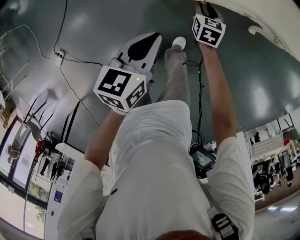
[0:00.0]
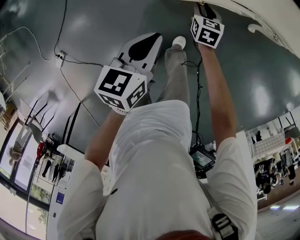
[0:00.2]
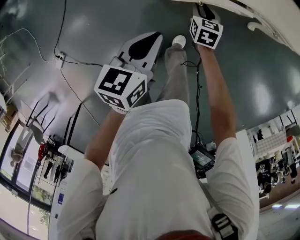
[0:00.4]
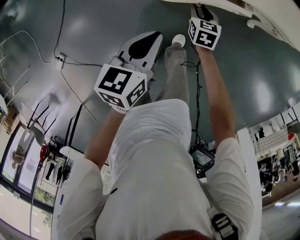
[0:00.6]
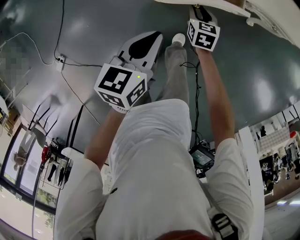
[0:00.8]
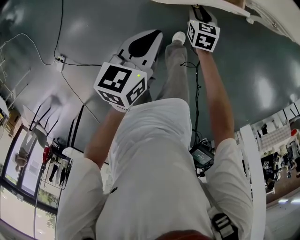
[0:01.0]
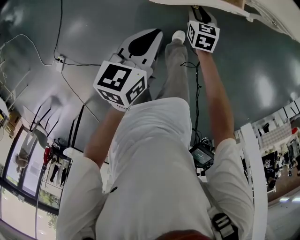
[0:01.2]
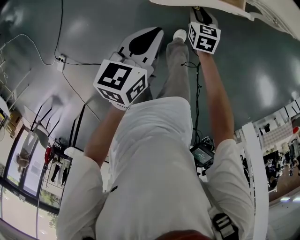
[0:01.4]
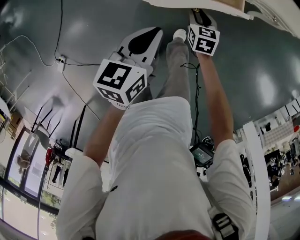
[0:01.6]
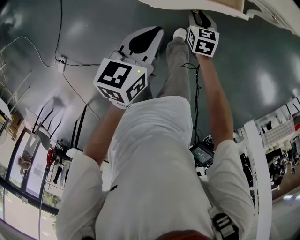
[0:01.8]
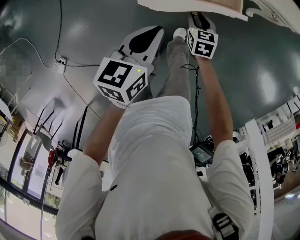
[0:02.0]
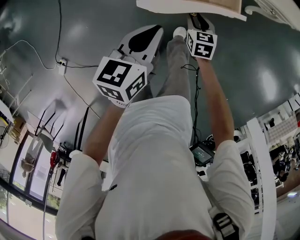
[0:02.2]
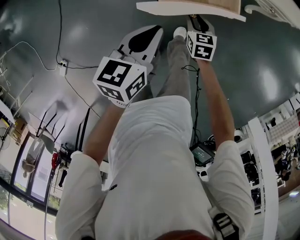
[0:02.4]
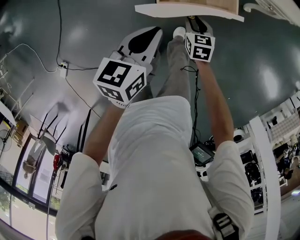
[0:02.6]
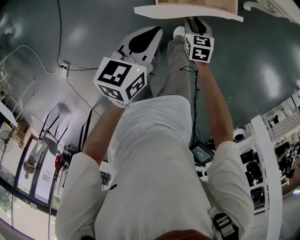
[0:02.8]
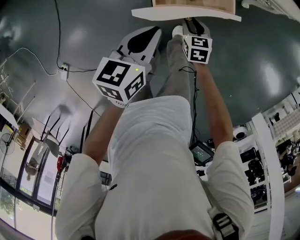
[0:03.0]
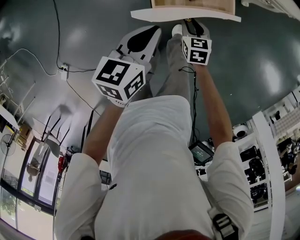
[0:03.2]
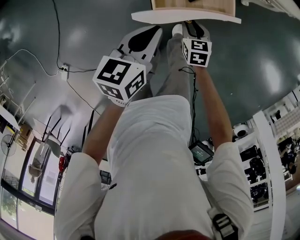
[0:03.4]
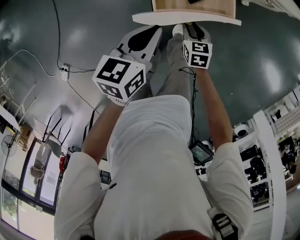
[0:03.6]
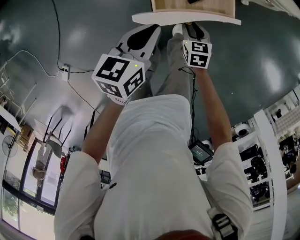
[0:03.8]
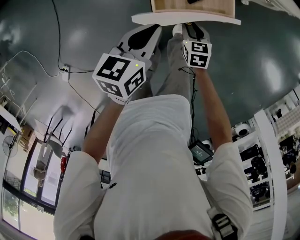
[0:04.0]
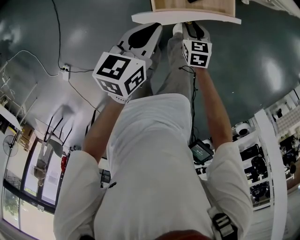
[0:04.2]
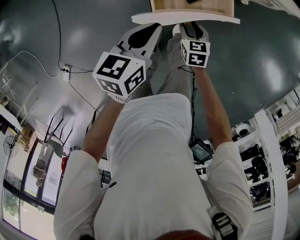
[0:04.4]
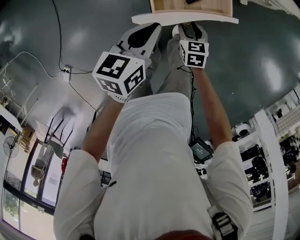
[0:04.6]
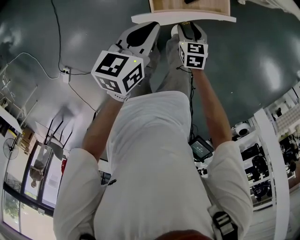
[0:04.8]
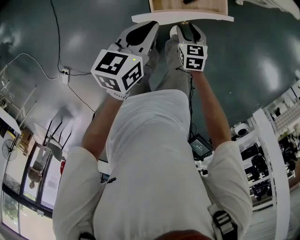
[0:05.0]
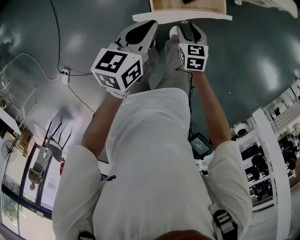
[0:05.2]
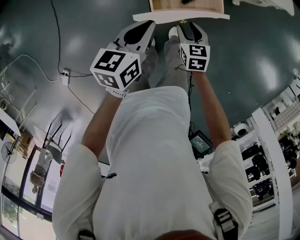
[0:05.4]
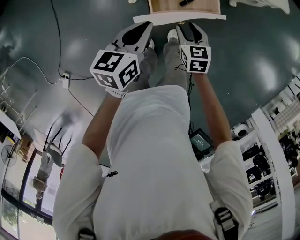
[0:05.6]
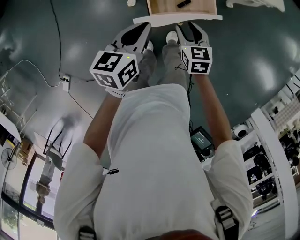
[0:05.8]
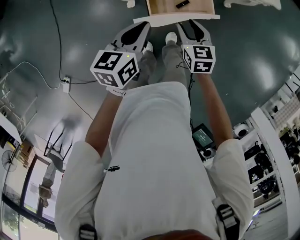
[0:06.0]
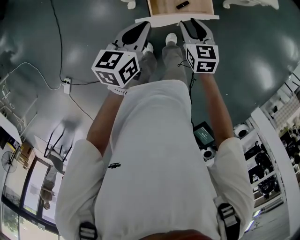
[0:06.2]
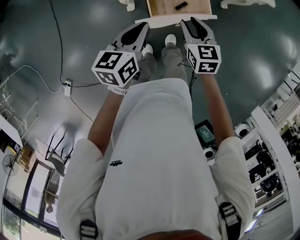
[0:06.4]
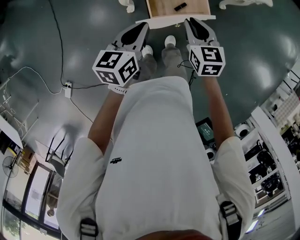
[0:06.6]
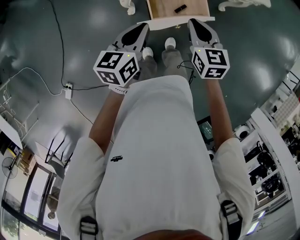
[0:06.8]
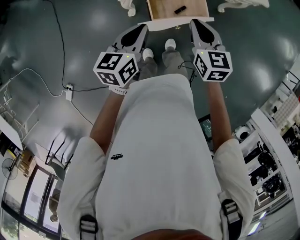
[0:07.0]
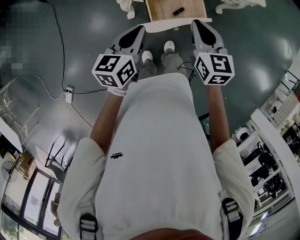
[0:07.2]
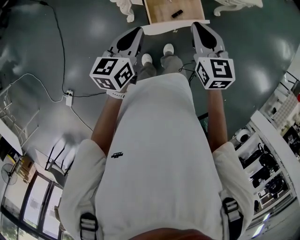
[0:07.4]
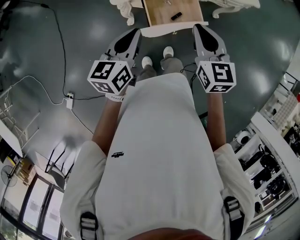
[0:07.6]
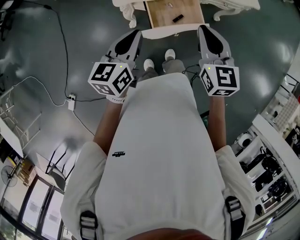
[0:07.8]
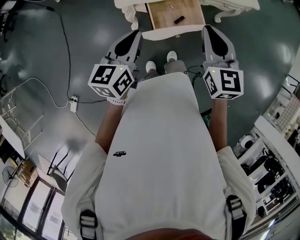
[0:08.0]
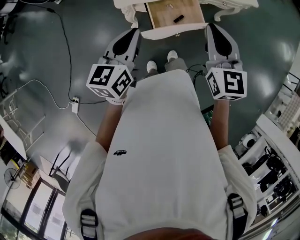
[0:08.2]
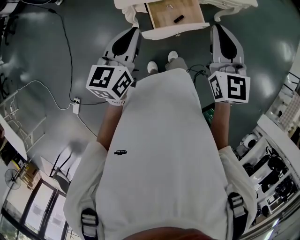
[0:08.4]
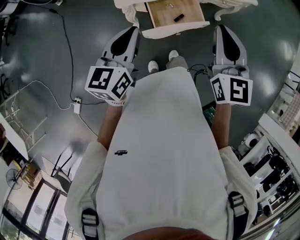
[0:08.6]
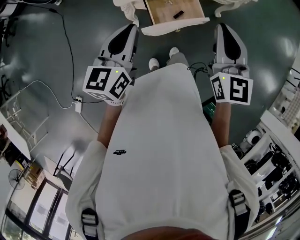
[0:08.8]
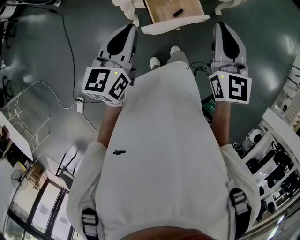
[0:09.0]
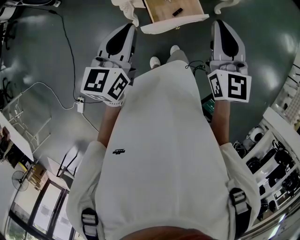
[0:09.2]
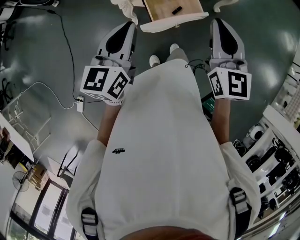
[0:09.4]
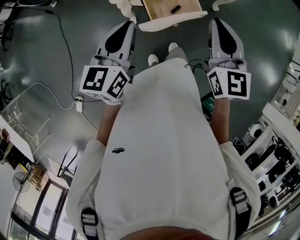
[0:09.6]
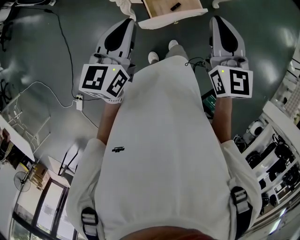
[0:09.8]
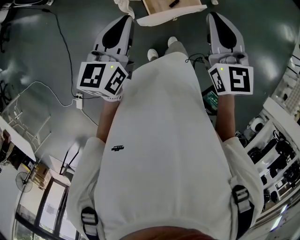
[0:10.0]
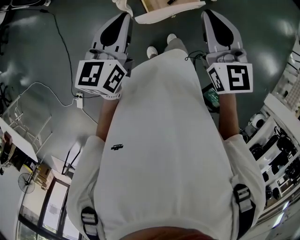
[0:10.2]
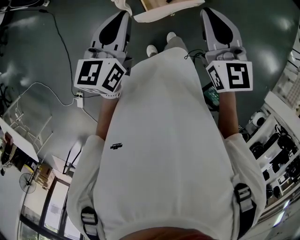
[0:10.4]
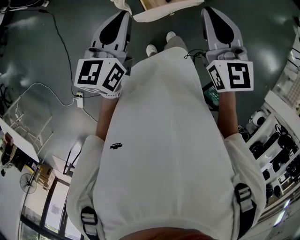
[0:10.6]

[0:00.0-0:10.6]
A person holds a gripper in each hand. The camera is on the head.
0:00.0 to 0:01.6: The right gripper heads backward, covering roughly 10 cm.
0:01.6 to 0:03.0: The right gripper travels backward by approximately 5 cm.
0:03.0 to 0:04.6: The grippers make only small movements.
0:04.6 to 0:06.0: The left gripper is displaced upward by some 10 cm; the right gripper is displaced upward by roughly 20 cm.
0:06.0 to 0:07.6: The left gripper goes roughly 10 cm upward. The right gripper shifts roughly 20 cm upward, and closes up.
0:07.6 to 0:09.0: Both grippers move upward, approximately 10 cm.
0:09.0 to 0:10.6: The grippers move only a little.

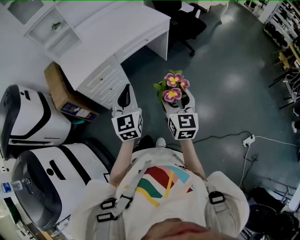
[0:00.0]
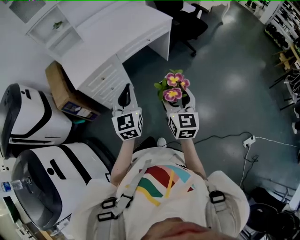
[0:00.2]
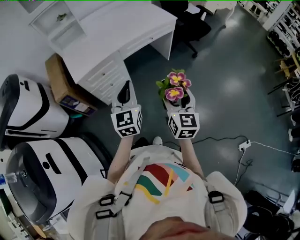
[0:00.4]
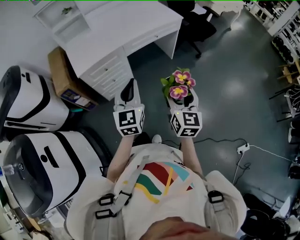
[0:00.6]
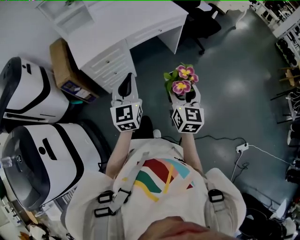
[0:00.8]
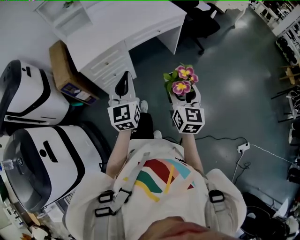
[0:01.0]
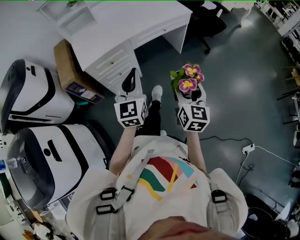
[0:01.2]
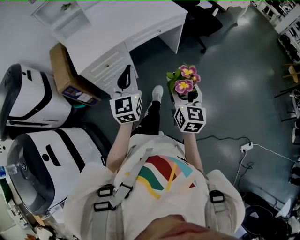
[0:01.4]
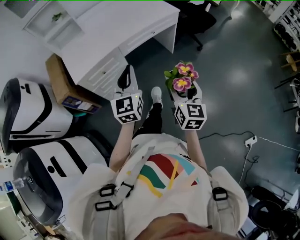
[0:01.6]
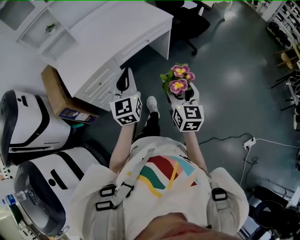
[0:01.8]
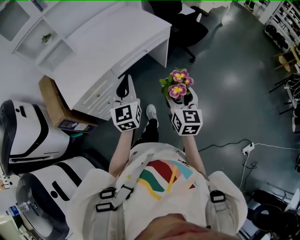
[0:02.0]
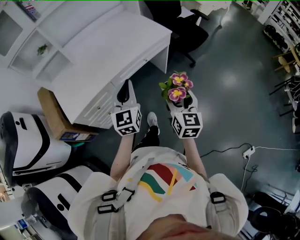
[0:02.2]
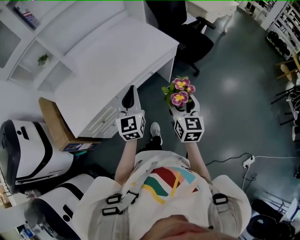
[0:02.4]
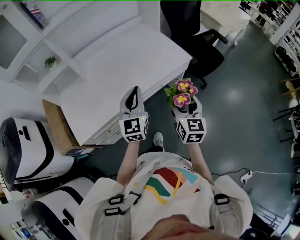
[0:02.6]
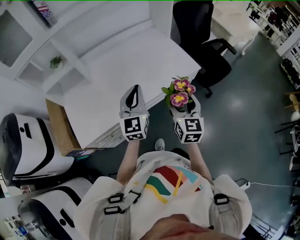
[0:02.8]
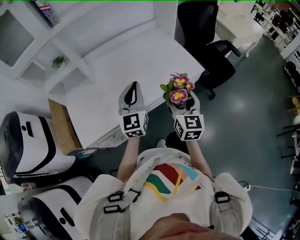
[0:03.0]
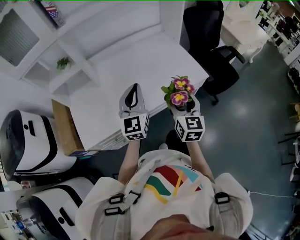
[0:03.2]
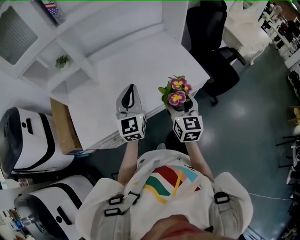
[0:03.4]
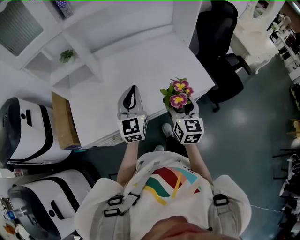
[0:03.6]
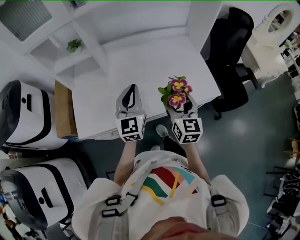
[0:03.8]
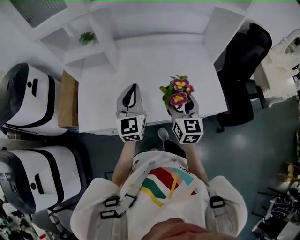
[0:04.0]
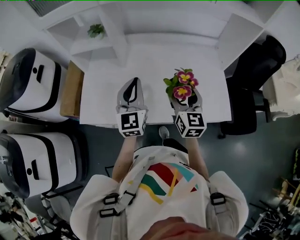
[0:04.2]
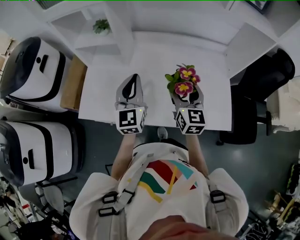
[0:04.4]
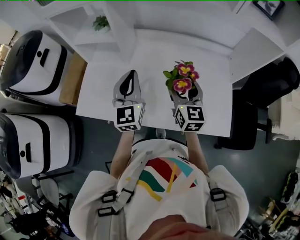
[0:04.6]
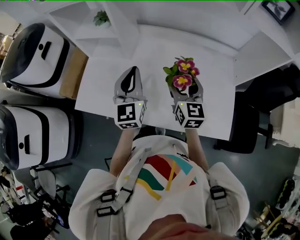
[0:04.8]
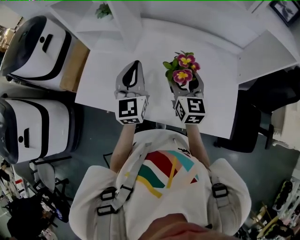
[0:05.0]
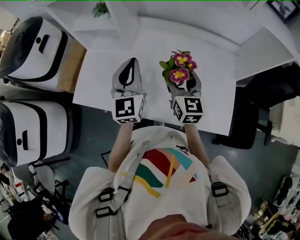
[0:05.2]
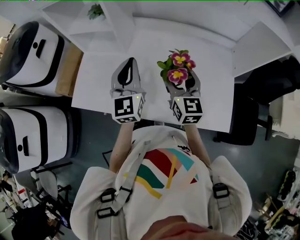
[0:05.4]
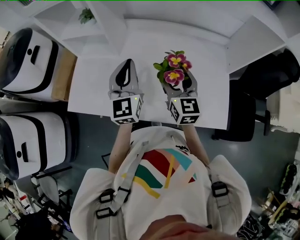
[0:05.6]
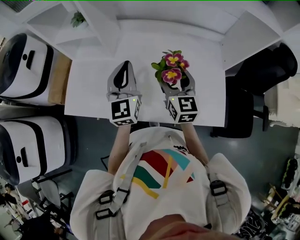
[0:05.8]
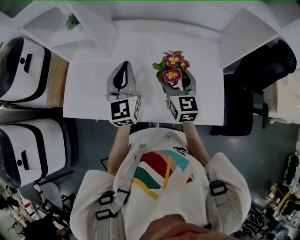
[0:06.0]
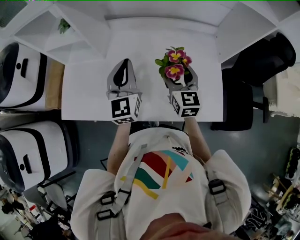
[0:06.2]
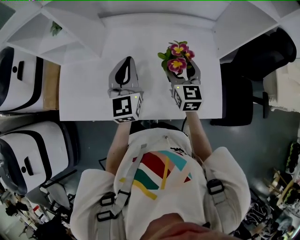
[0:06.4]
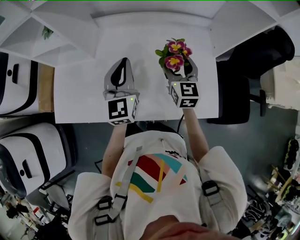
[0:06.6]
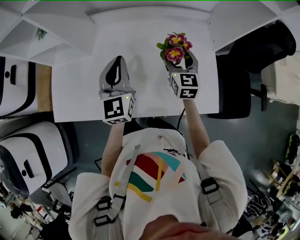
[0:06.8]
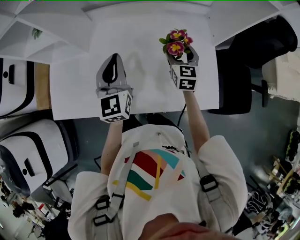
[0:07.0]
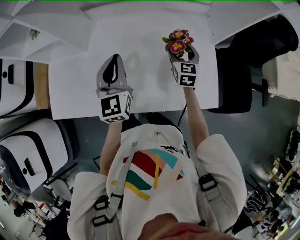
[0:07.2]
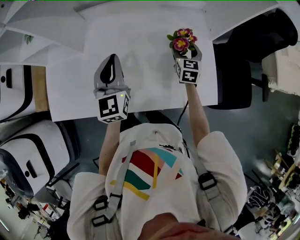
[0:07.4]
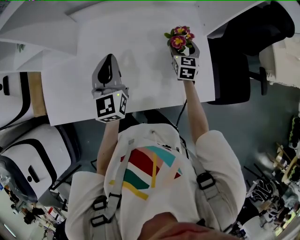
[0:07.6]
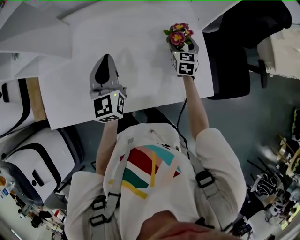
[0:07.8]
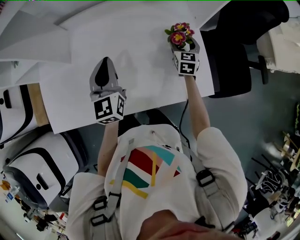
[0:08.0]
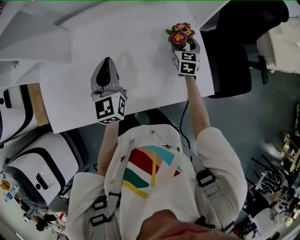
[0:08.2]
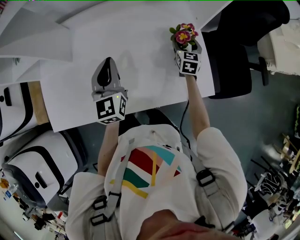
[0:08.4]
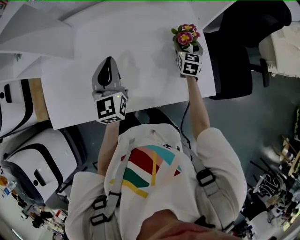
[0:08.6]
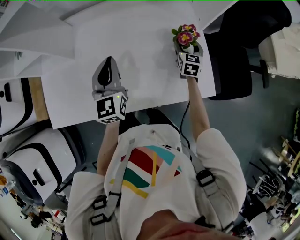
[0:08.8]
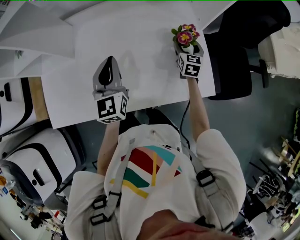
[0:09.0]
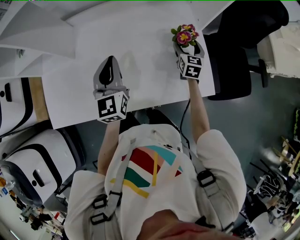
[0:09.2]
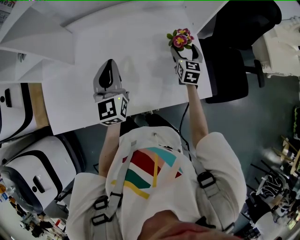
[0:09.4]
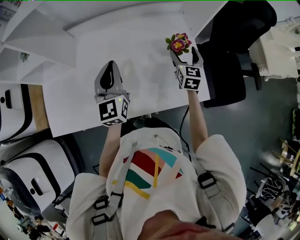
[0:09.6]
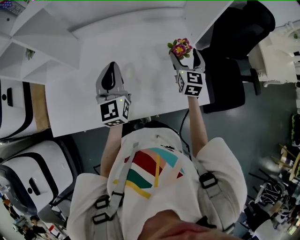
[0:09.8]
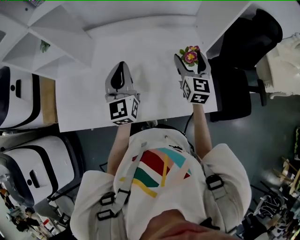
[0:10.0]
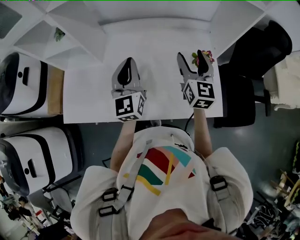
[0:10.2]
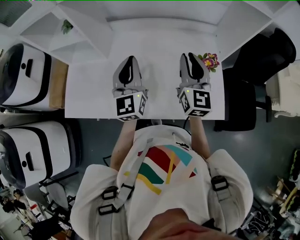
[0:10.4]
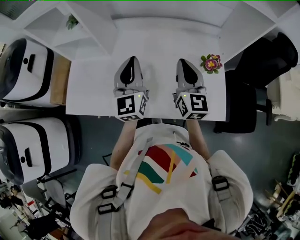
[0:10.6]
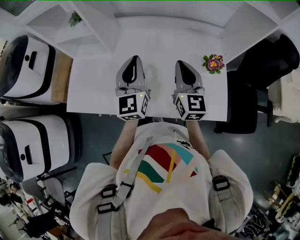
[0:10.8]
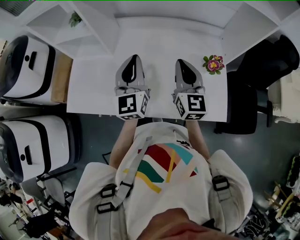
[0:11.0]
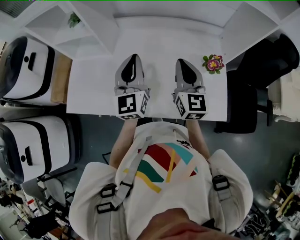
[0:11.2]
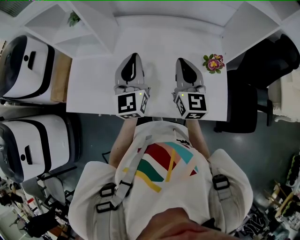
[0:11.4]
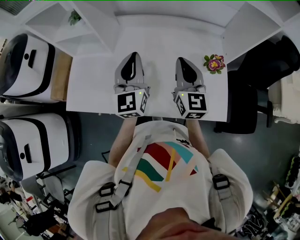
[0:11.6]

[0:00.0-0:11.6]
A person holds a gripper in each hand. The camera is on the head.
0:00.0 to 0:01.4: The left gripper travels forward by roughly 5 cm.
0:01.4 to 0:02.8: Both grippers are carried forward, approximately 40 cm.
0:02.8 to 0:04.4: The left gripper ends up about 20 cm from where it was, and changes its angle by about 40 degrees. The right gripper shifts by some 30 cm, and changes its angle by about 40 degrees.
0:04.4 to 0:05.8: The left gripper ends up approximately 5 cm from where it was. The right gripper ends up some 5 cm from where it was.
0:05.8 to 0:07.2: The right gripper shifts roughly 25 cm to the right, downward and forward, and changes its angle by about 20 degrees. Meanwhile the left gripper moves to the right, roughly 10 cm.
0:07.2 to 0:08.8: The right gripper shifts roughly 15 cm to the right and downward.
0:08.8 to 0:10.2: The right gripper shifts approximately 25 cm upward and to the left, and turns by about 30 degrees. The left gripper shifts roughly 5 cm upward.
0:10.2 to 0:11.6: The right gripper is displaced to the left by some 10 cm, and closes.

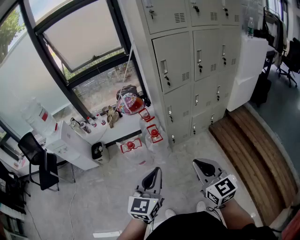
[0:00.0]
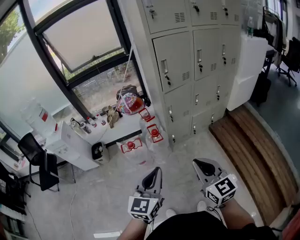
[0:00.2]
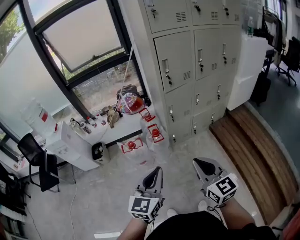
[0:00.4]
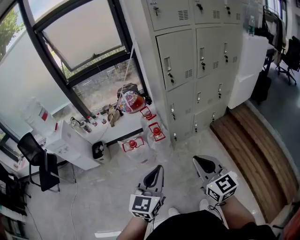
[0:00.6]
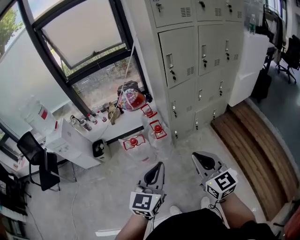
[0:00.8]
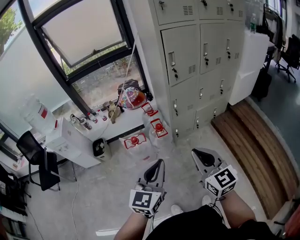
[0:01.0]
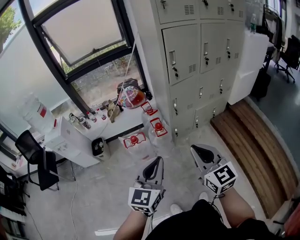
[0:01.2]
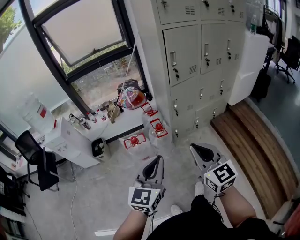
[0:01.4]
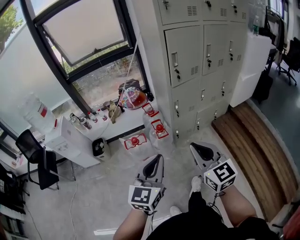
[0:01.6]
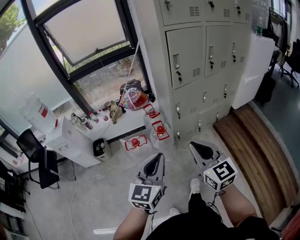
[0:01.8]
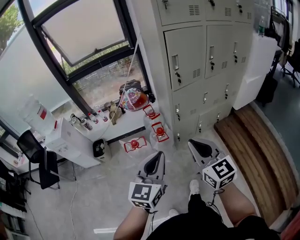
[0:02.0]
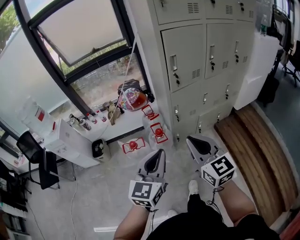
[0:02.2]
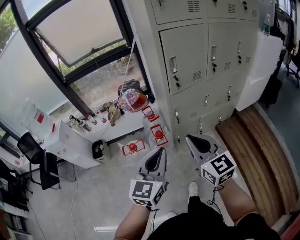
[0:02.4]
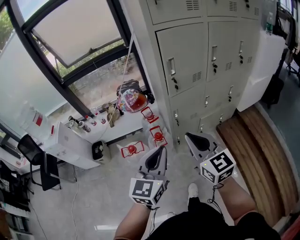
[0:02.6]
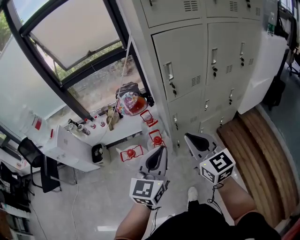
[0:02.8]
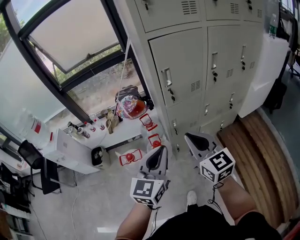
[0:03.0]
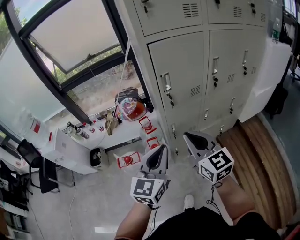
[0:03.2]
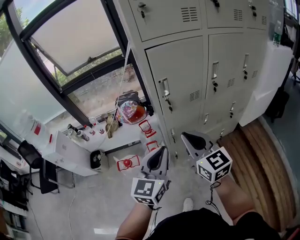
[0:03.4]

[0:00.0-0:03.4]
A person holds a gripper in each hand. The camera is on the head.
0:00.0 to 0:01.6: The left gripper travels to the left by some 5 cm. The right gripper shifts approximately 10 cm to the left and forward.
0:01.6 to 0:03.4: The two grippers go approximately 30 cm forward and to the right.
